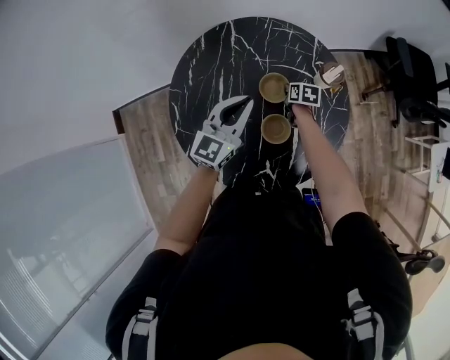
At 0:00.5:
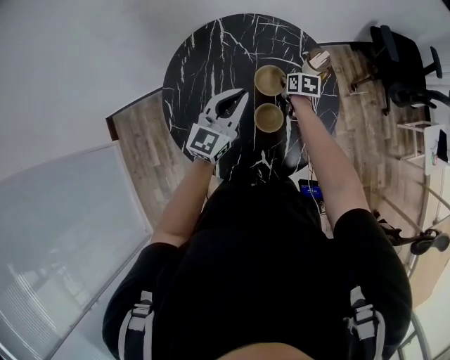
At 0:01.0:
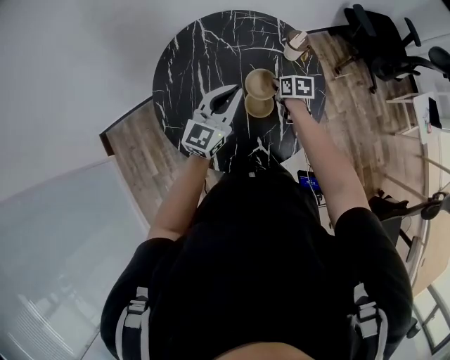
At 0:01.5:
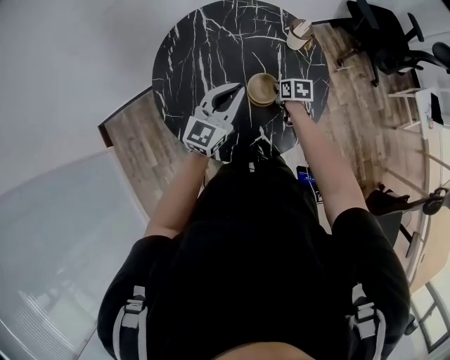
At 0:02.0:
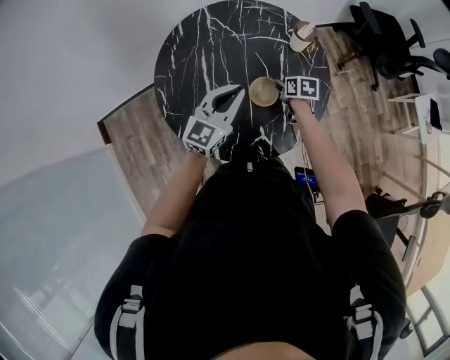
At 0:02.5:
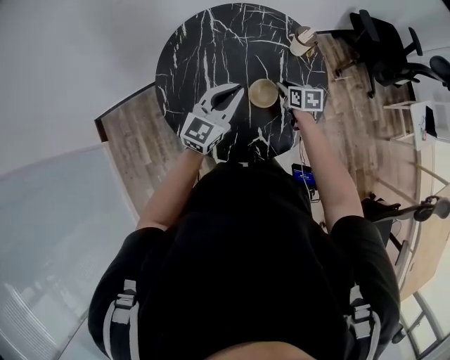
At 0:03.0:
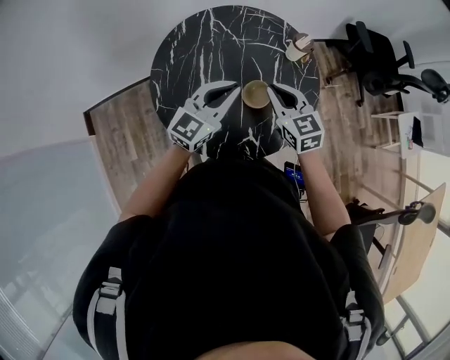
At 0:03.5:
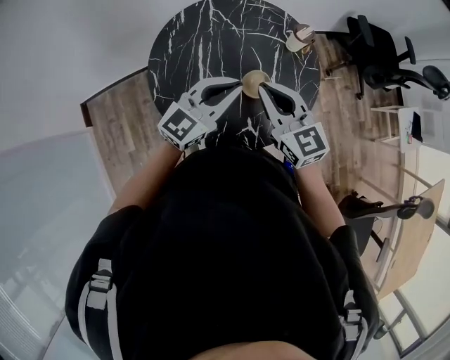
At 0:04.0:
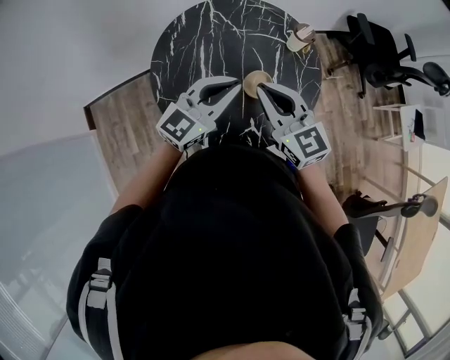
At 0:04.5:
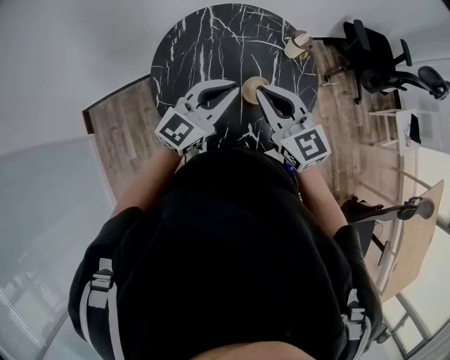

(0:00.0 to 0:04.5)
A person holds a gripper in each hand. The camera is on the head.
0:00.0 - 0:02.0: The left gripper goes roughly 10 cm backward; the right gripper travels backward and upward by roughly 15 cm, and opens.
0:02.0 - 0:04.5: The left gripper moves upward, approximately 10 cm. Meanwhile the right gripper heads upward, covering some 35 cm, tilts its fingers approximately 40 degrees upward, and closes up.

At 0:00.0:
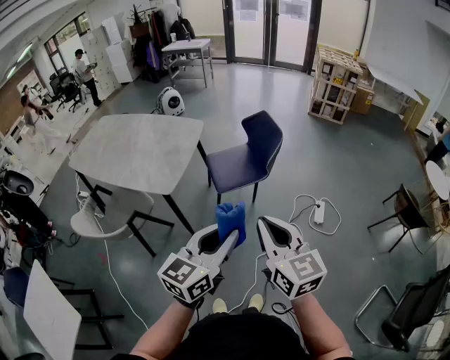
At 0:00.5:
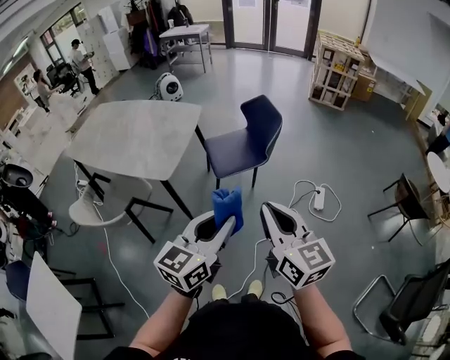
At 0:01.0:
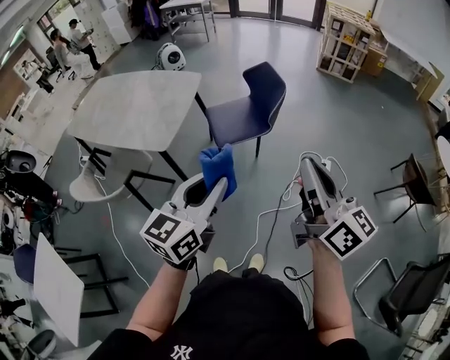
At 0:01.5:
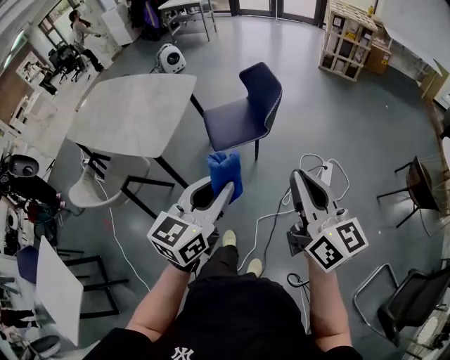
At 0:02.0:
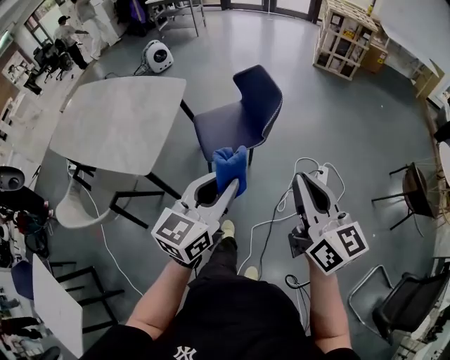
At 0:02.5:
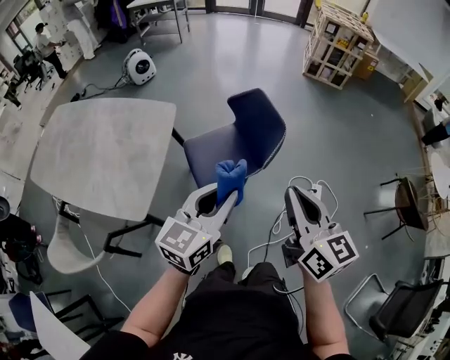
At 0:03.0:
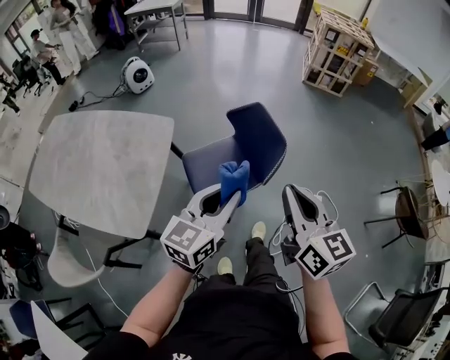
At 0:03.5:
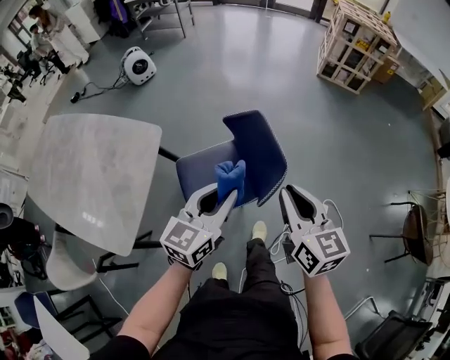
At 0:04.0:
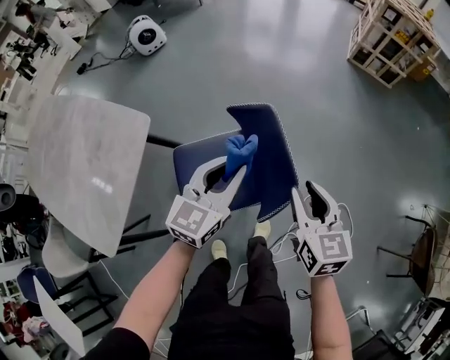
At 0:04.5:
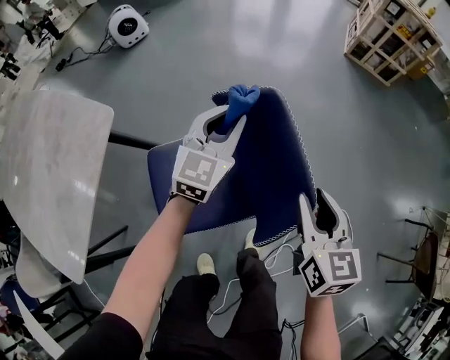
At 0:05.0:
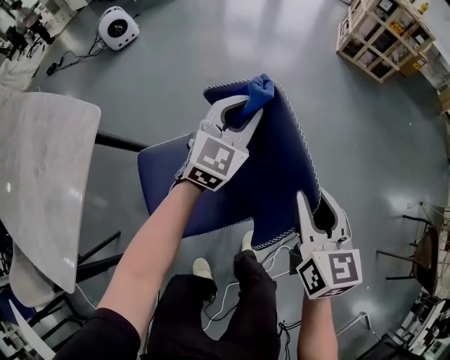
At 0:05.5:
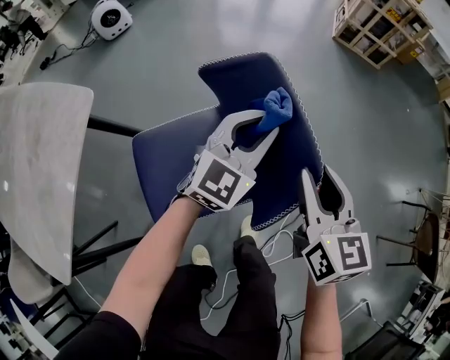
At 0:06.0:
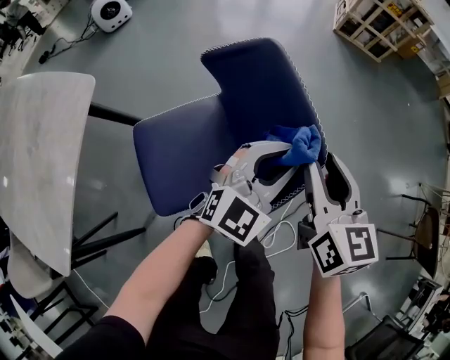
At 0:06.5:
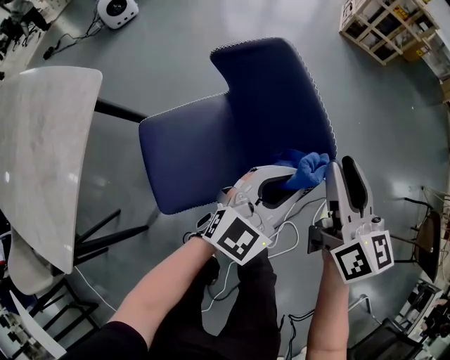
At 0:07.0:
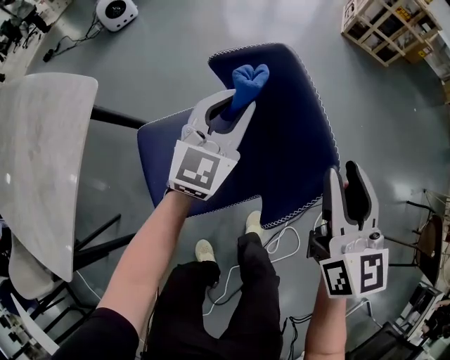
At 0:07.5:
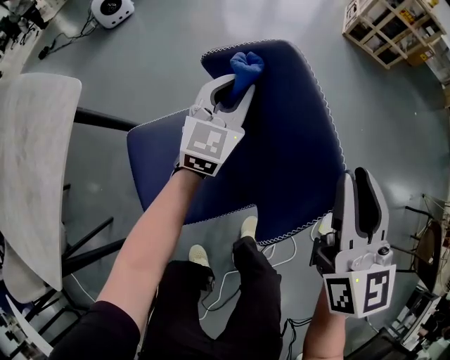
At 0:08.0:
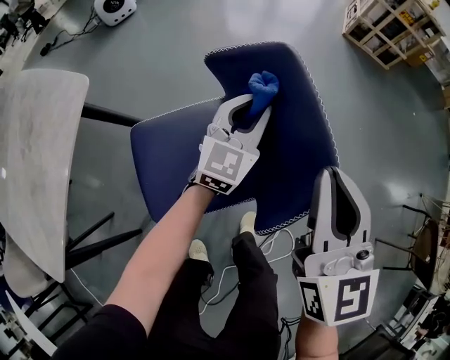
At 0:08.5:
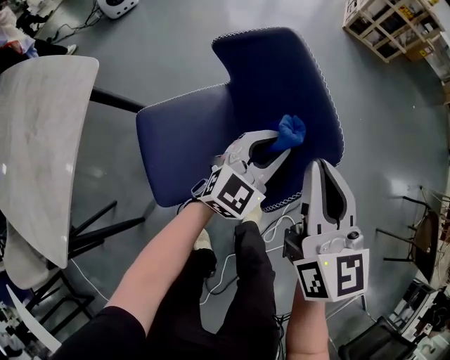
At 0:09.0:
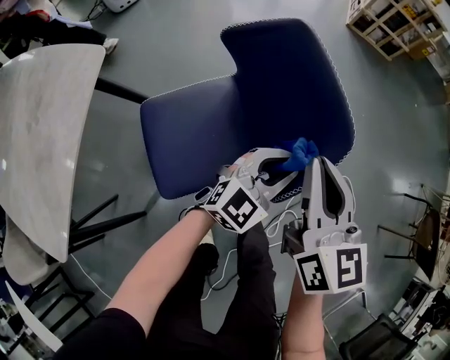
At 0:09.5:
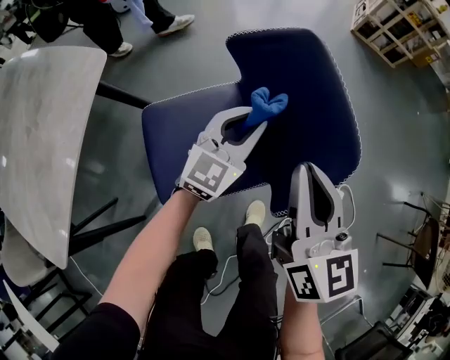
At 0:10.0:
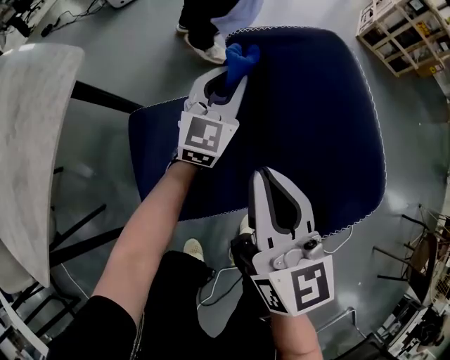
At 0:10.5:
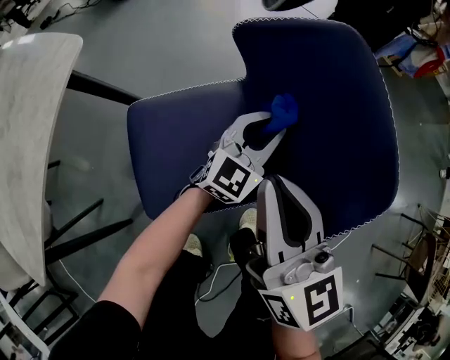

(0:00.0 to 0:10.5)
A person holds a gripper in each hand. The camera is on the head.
0:00.0 - 0:02.0: The left gripper goes roughly 20 cm forward, while the right gripper goes some 20 cm forward and to the right.
0:02.0 - 0:04.0: Both grippers are carried forward, approximately 60 cm. The right gripper heads downward, covering some 25 cm, rotates approximately 30 degrees, and opens its fingers.
0:04.0 - 0:06.5: The left gripper moves downward and to the right, some 20 cm, reaches approximately 15 cm forward, then returns, and changes its angle by about 30 degrees. The right gripper moves downward, some 10 cm, and rotates approximately 20 degrees.
0:06.5 - 0:08.5: The left gripper is displaced downward by roughly 5 cm, and travels forward and back again, approximately 20 cm each way. The right gripper moves to the left, some 5 cm, and closes up.
0:08.5 - 0:10.5: The left gripper is displaced downward by about 10 cm; the right gripper moves about 15 cm.

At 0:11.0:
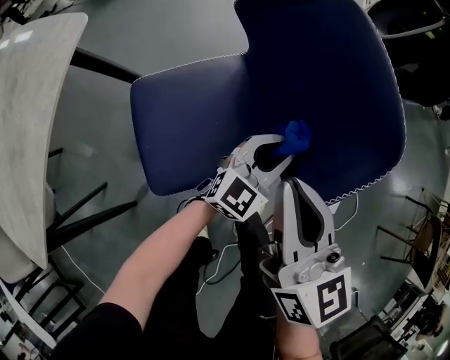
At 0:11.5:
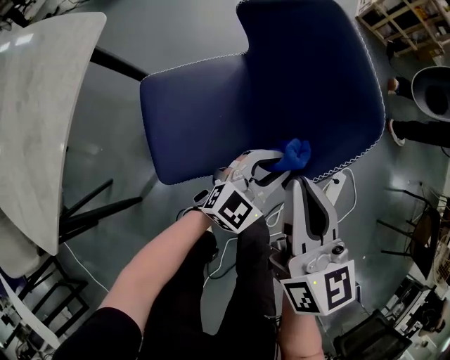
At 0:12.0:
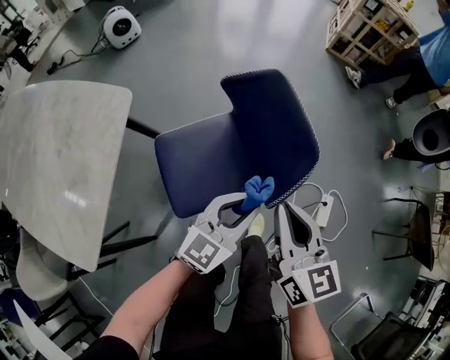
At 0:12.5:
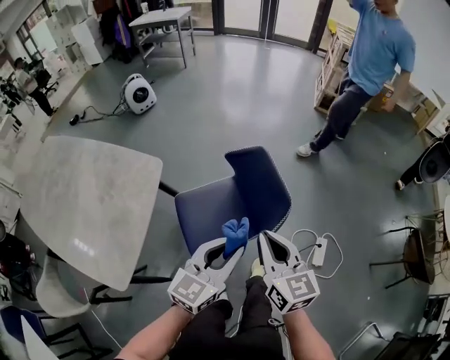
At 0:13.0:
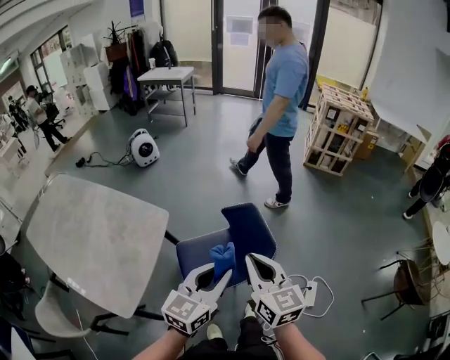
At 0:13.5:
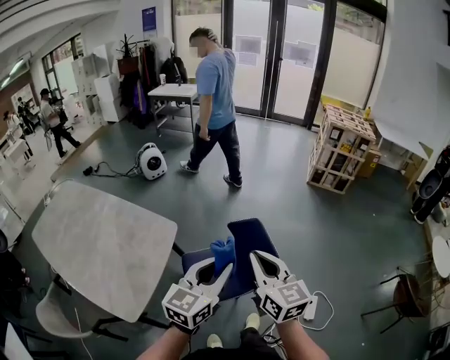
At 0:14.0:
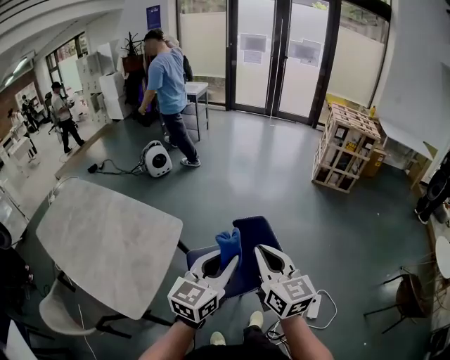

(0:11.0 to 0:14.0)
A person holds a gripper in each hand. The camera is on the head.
0:11.0 - 0:12.5: The left gripper shifts about 40 cm upward and backward. The right gripper travels upward by some 25 cm.
0:12.5 - 0:14.0: The two grippers go some 20 cm upward.

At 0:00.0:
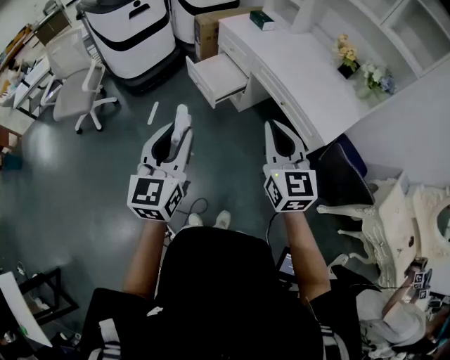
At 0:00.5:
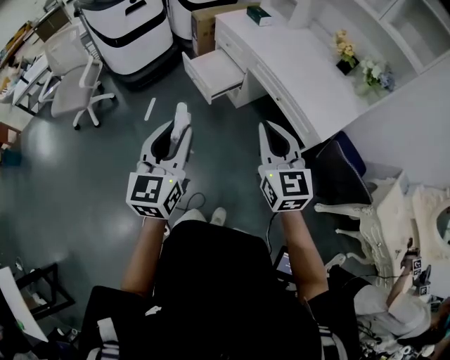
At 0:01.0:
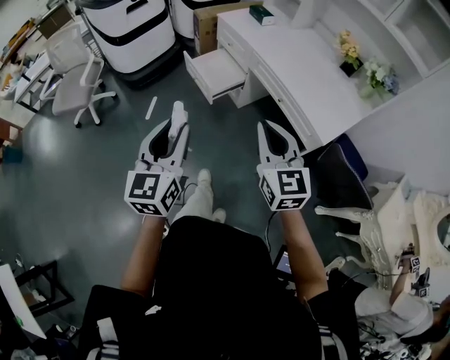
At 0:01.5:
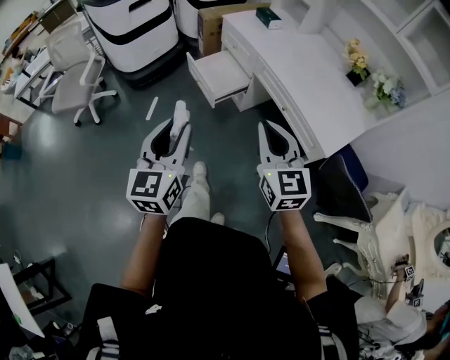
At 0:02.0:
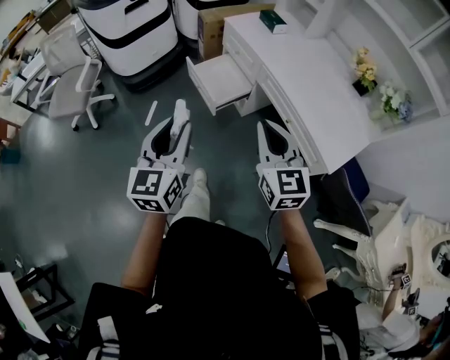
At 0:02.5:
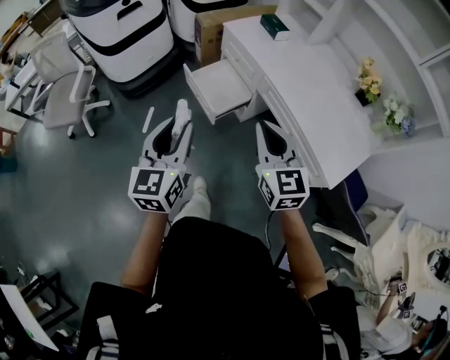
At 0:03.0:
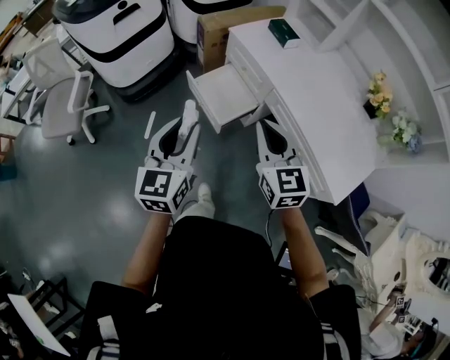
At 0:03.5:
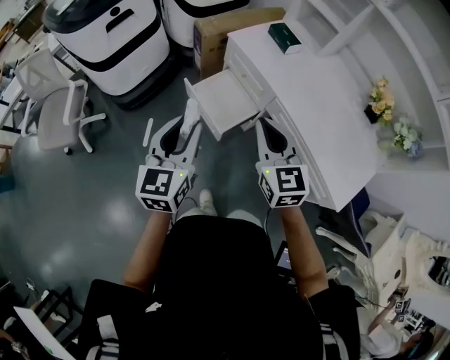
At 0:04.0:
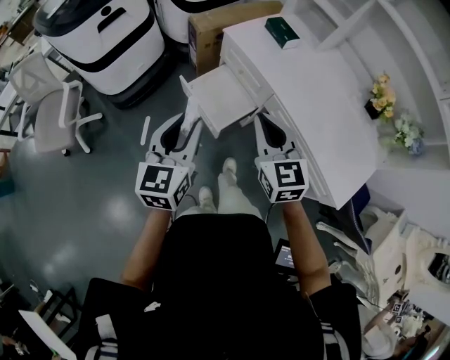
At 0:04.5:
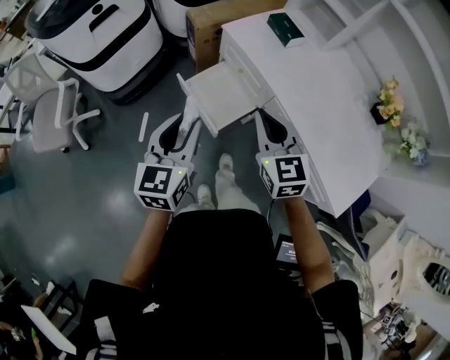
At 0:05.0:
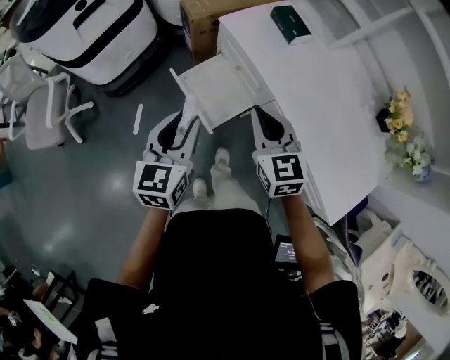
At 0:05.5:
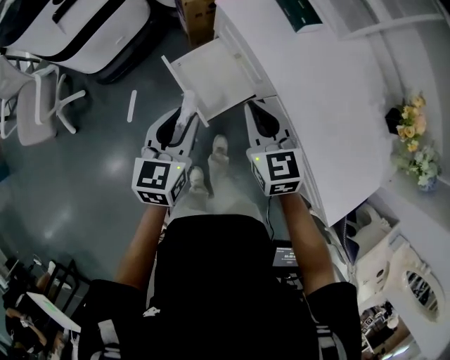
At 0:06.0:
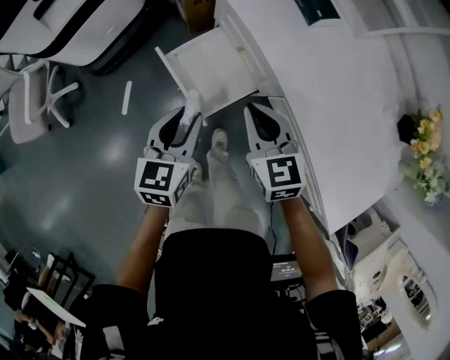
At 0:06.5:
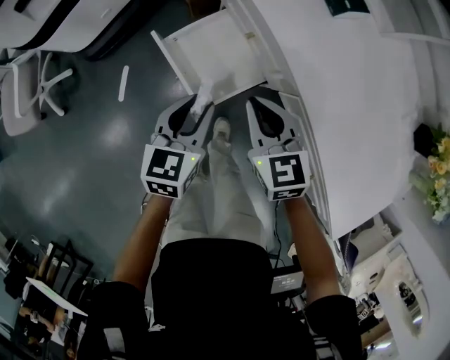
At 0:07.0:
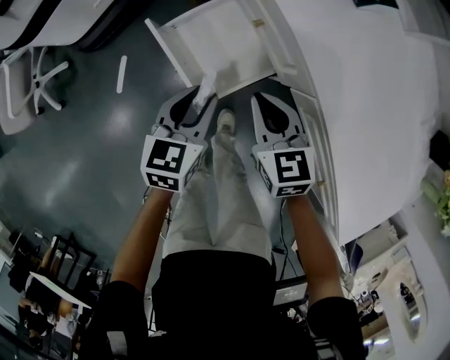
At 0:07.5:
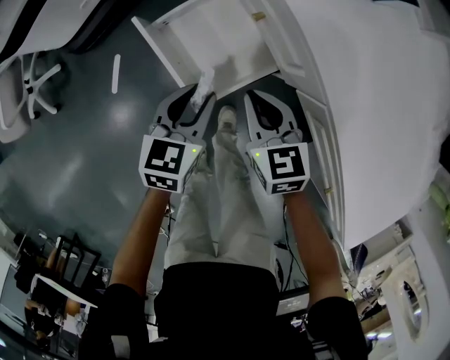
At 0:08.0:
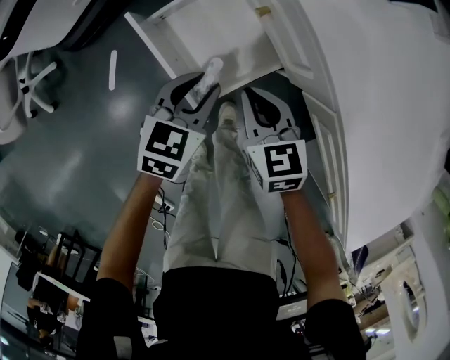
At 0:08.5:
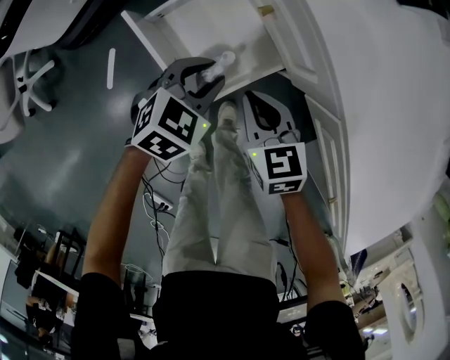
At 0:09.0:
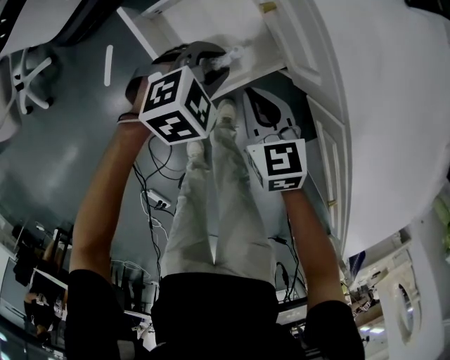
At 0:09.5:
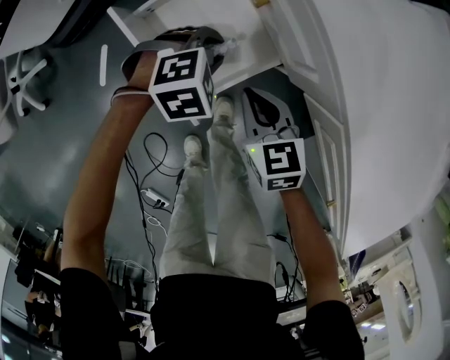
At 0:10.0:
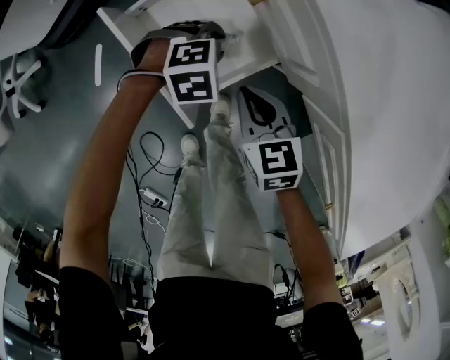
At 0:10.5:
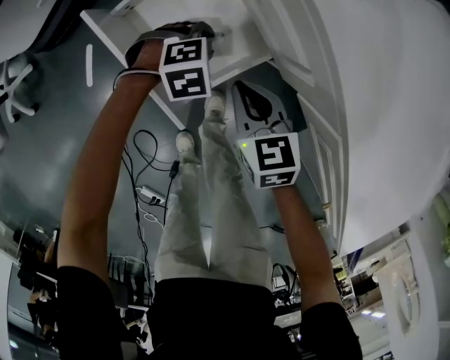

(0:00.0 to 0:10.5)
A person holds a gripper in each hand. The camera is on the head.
0:00.0 - 0:02.0: Both grippers move forward, some 15 cm.
0:02.0 - 0:04.0: The two grippers go some 30 cm forward.
0:04.0 - 0:06.5: The grippers both shift downward and forward by about 35 cm. The left gripper changes its angle by approximately 20 degrees; the right gripper swivels roughly 20 degrees.
0:06.5 - 0:08.5: The two grippers go roughly 20 cm downward. The left gripper rotates approximately 40 degrees.
0:08.5 - 0:10.5: The left gripper moves downward, about 15 cm, and swivels about 40 degrees; the right gripper travels downward by about 5 cm.
